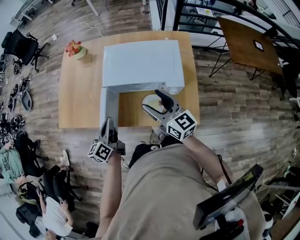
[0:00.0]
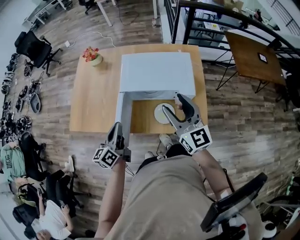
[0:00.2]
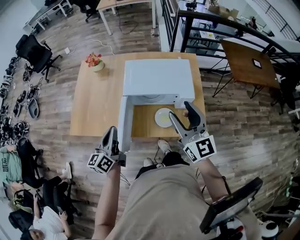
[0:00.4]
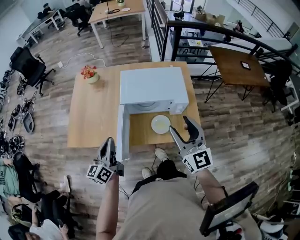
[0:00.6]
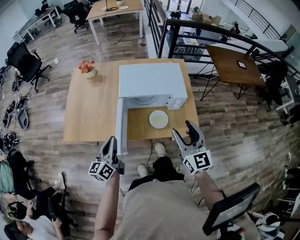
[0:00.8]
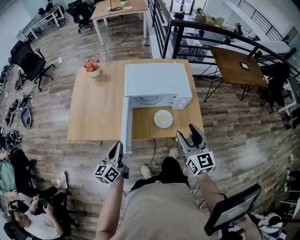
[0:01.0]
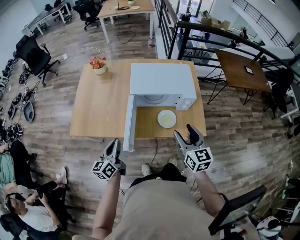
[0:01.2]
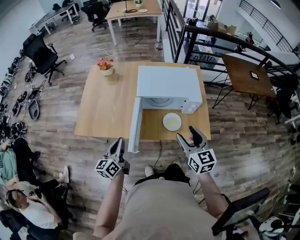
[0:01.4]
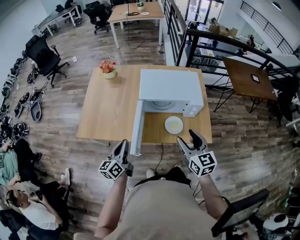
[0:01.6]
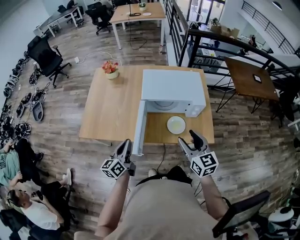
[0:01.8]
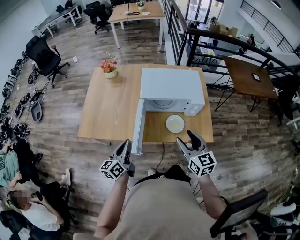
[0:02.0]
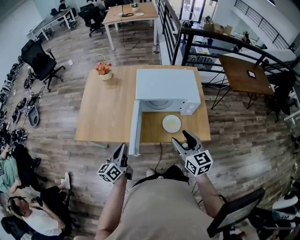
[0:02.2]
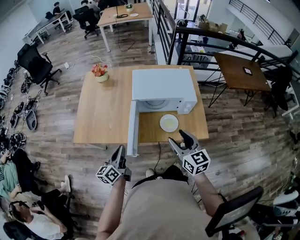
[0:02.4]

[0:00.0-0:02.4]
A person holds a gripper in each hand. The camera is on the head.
0:00.0 to 0:01.2: The right gripper is displaced backward by some 15 cm, and changes its angle by roughly 30 degrees, while the left gripper travels to the left and backward by some 15 cm.
0:01.2 to 0:02.4: The grippers make only small movements.

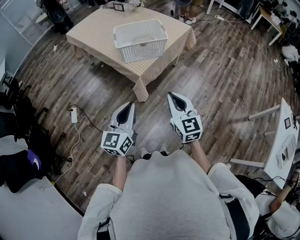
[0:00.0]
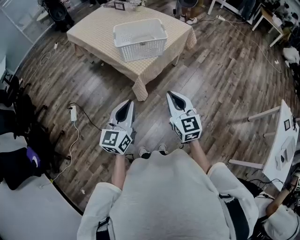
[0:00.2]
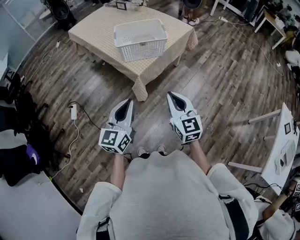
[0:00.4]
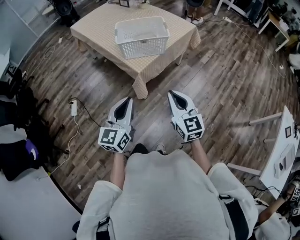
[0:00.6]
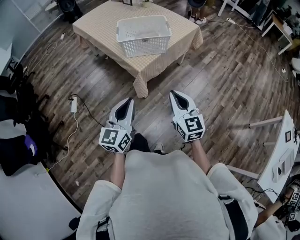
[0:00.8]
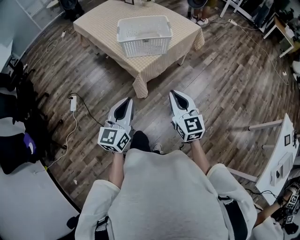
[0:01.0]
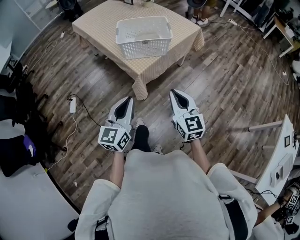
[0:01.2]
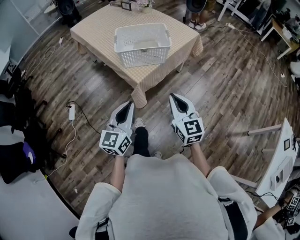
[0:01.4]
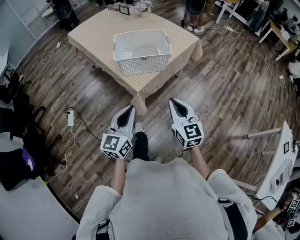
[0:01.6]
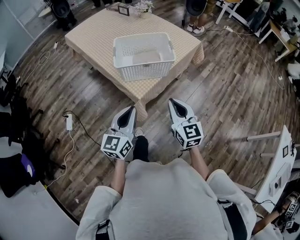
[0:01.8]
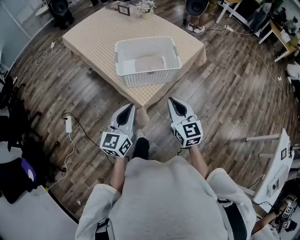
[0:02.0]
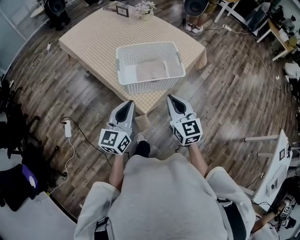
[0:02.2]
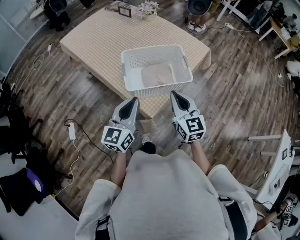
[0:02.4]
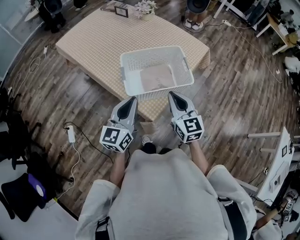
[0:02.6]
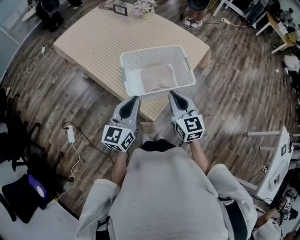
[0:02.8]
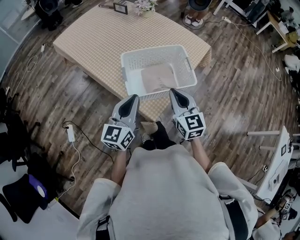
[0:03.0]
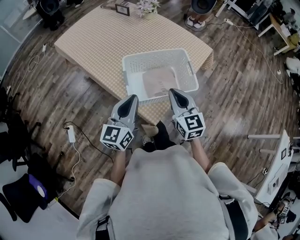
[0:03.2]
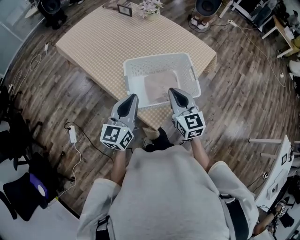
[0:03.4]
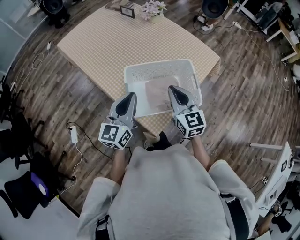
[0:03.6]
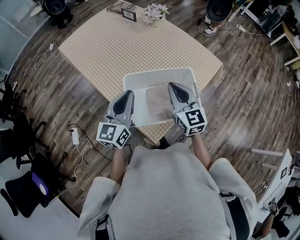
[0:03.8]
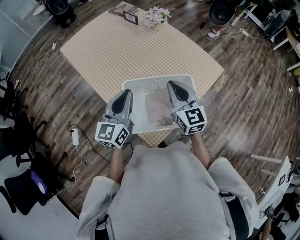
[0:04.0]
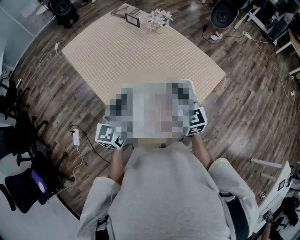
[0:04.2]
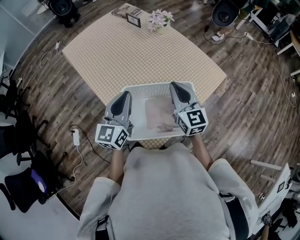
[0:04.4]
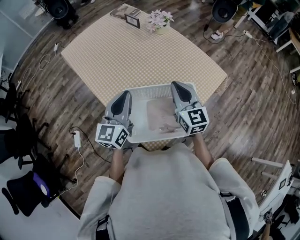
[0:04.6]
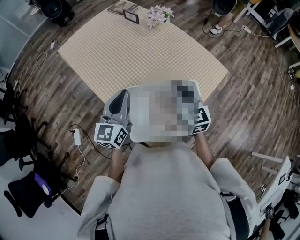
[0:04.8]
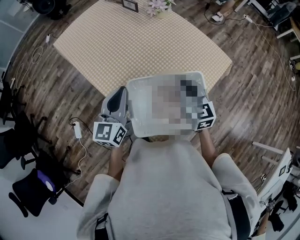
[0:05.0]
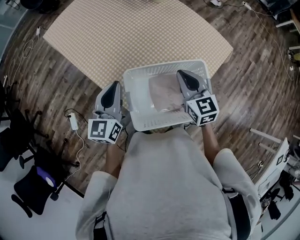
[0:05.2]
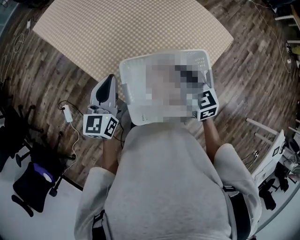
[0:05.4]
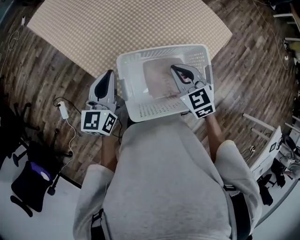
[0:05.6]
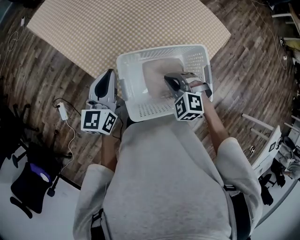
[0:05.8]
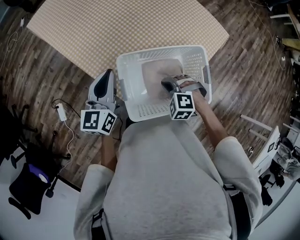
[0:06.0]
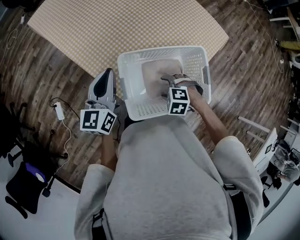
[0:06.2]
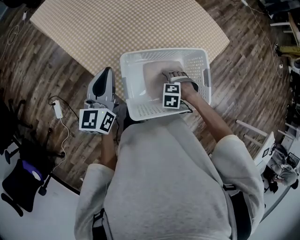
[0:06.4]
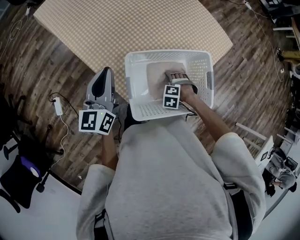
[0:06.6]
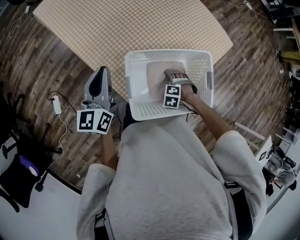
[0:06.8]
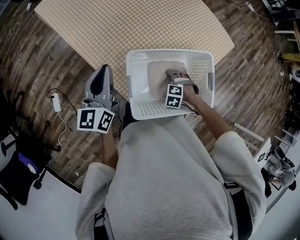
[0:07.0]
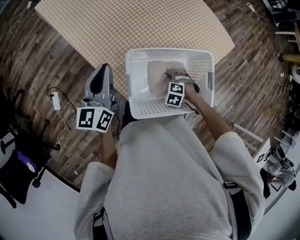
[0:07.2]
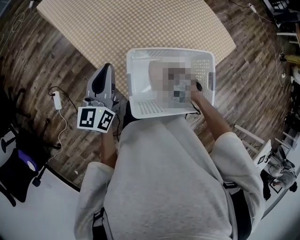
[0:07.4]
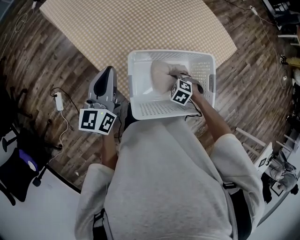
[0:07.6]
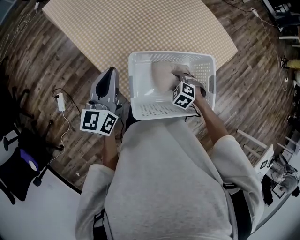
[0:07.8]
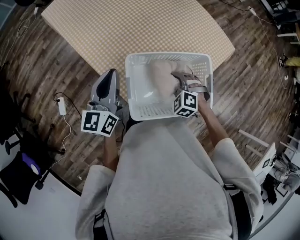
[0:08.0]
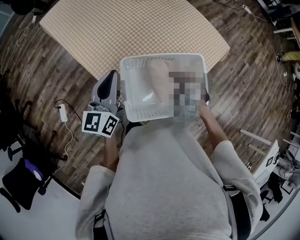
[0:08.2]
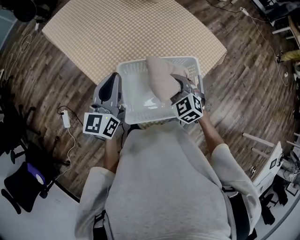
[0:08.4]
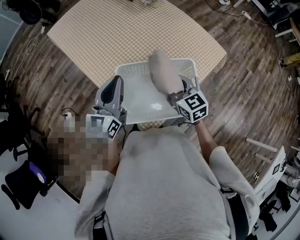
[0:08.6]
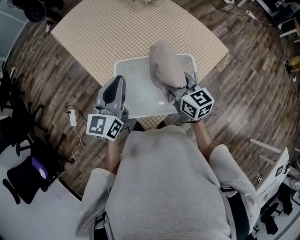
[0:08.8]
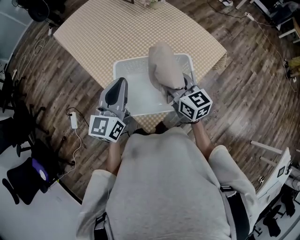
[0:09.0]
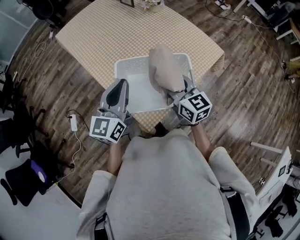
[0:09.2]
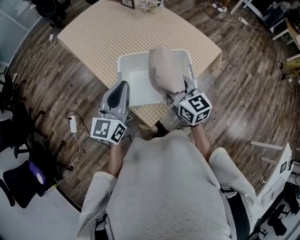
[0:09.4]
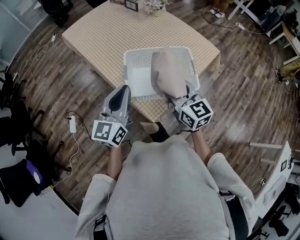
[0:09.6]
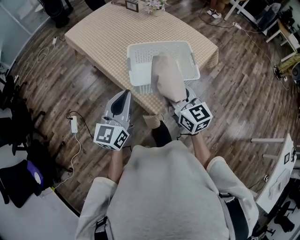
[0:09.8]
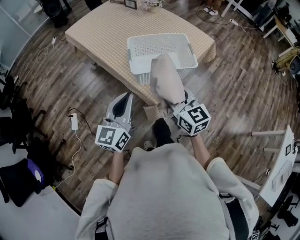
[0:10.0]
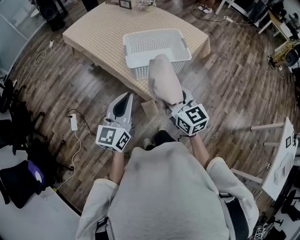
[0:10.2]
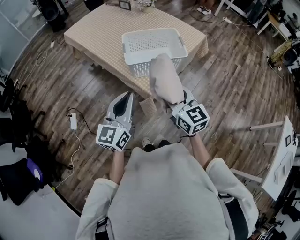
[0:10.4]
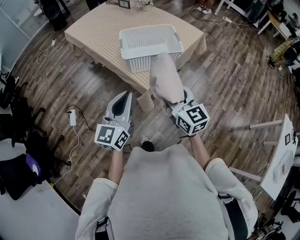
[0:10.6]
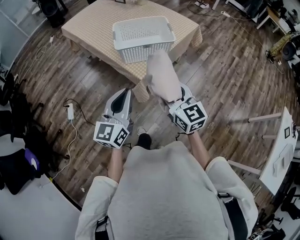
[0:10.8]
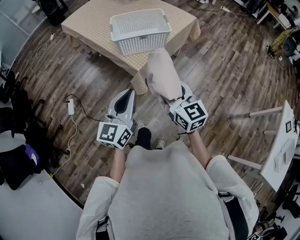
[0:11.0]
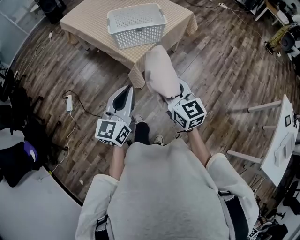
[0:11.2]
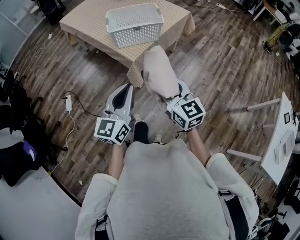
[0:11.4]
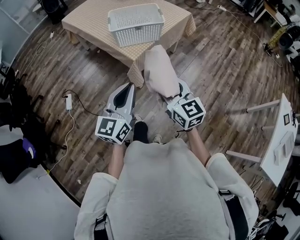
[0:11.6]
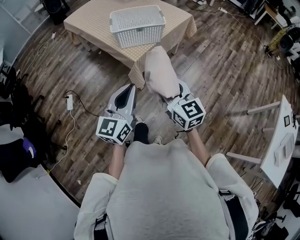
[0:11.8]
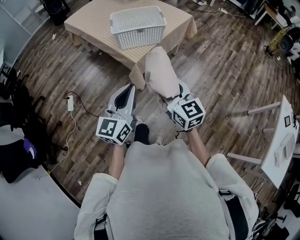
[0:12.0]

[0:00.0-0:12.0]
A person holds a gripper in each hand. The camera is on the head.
0:00.0 to 0:01.6: The grippers both shift forward by roughly 10 cm.
0:01.6 to 0:03.0: The right gripper is displaced forward and to the left by roughly 30 cm; the left gripper heads forward, covering about 30 cm.
0:03.0 to 0:04.4: The grippers both shift forward by approximately 20 cm.
0:04.4 to 0:06.0: The left gripper moves downward and to the left, roughly 10 cm. The right gripper moves downward, roughly 20 cm, and angles its fingers downward, by about 60 degrees.
0:06.0 to 0:07.6: The right gripper goes some 10 cm downward, and opens and closes again.
0:07.6 to 0:09.0: The left gripper shifts by approximately 15 cm; the right gripper moves upward, about 30 cm, and angles its fingers upward, by approximately 60 degrees.
0:09.0 to 0:10.4: The two grippers go approximately 35 cm backward.
0:10.4 to 0:12.0: The left gripper goes roughly 25 cm backward and to the right. The right gripper is displaced backward by some 20 cm.

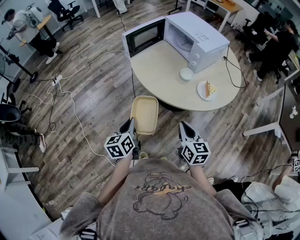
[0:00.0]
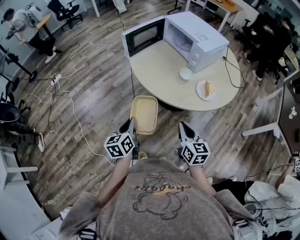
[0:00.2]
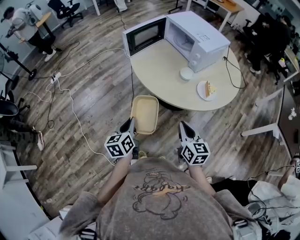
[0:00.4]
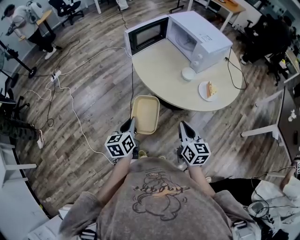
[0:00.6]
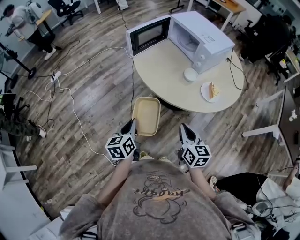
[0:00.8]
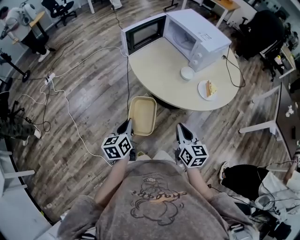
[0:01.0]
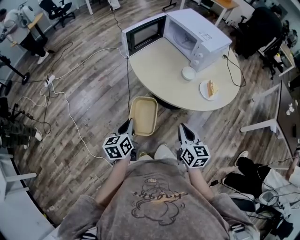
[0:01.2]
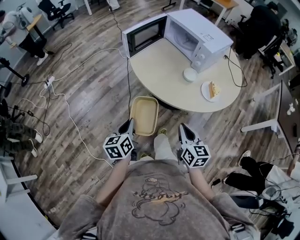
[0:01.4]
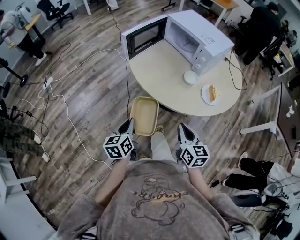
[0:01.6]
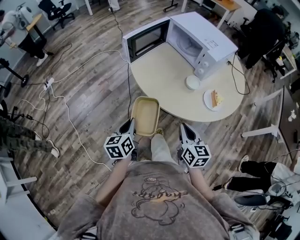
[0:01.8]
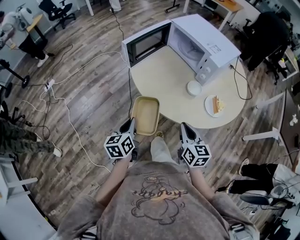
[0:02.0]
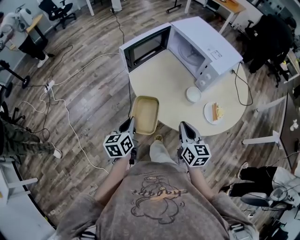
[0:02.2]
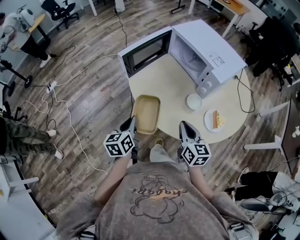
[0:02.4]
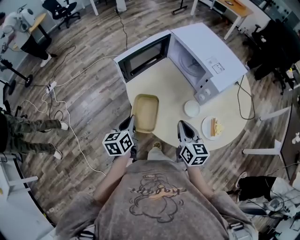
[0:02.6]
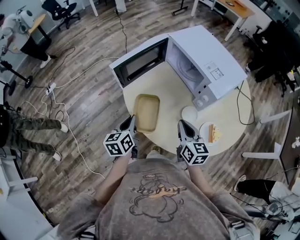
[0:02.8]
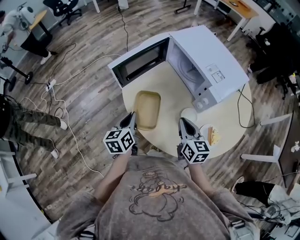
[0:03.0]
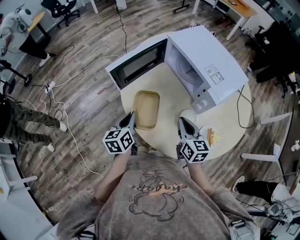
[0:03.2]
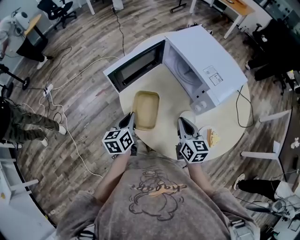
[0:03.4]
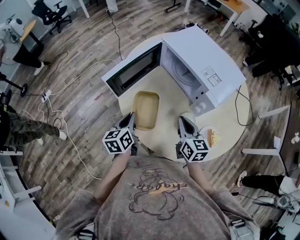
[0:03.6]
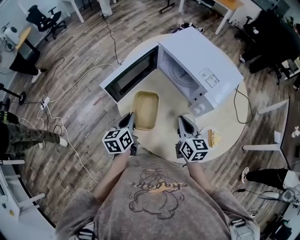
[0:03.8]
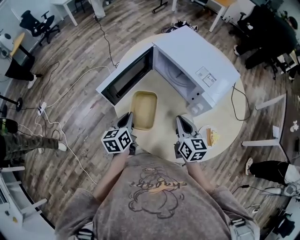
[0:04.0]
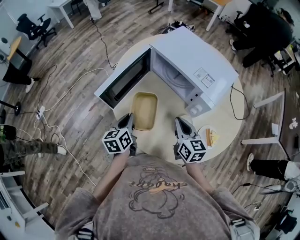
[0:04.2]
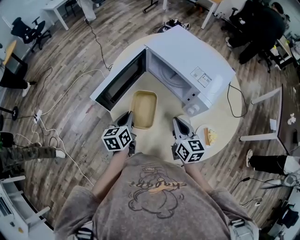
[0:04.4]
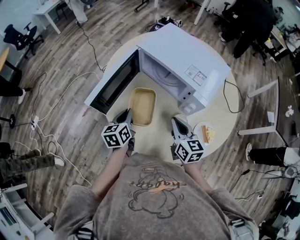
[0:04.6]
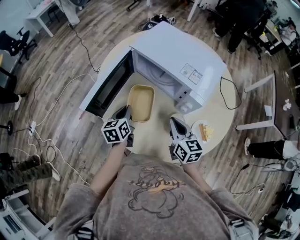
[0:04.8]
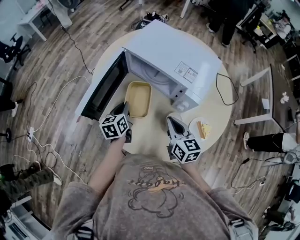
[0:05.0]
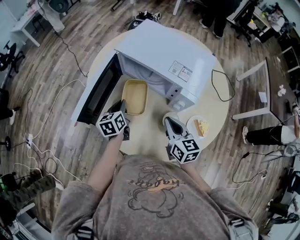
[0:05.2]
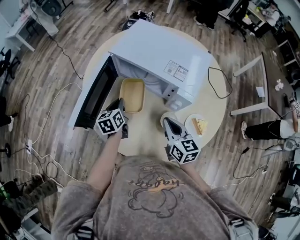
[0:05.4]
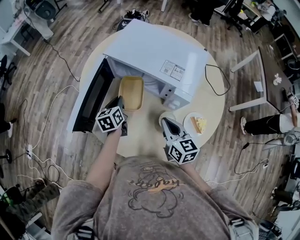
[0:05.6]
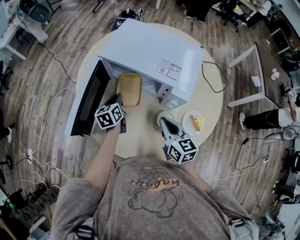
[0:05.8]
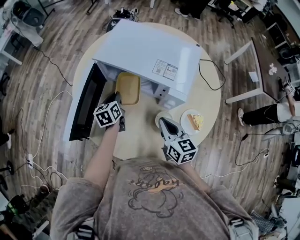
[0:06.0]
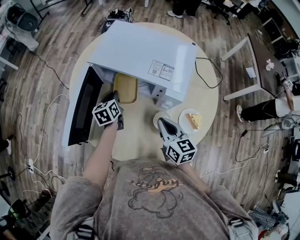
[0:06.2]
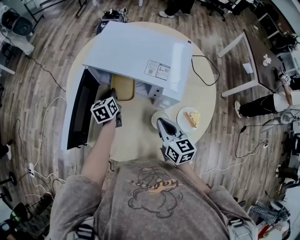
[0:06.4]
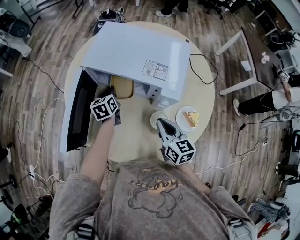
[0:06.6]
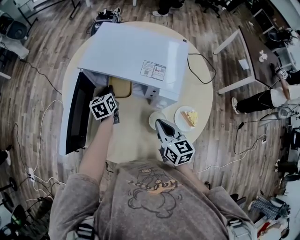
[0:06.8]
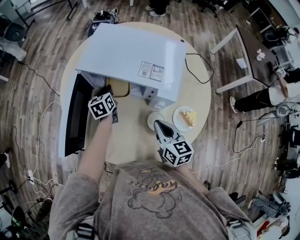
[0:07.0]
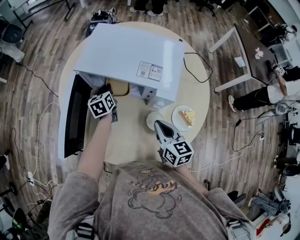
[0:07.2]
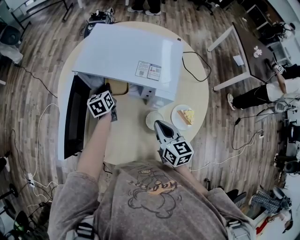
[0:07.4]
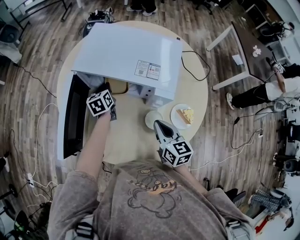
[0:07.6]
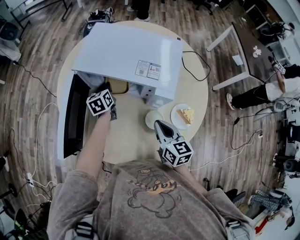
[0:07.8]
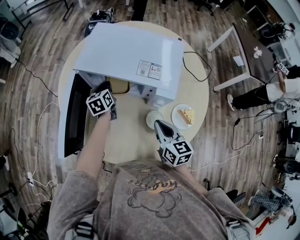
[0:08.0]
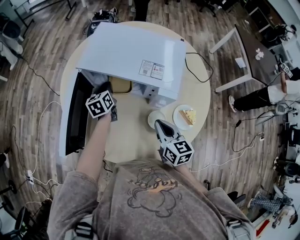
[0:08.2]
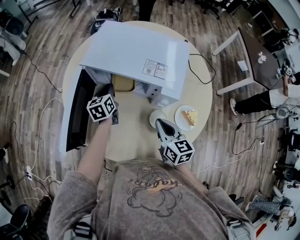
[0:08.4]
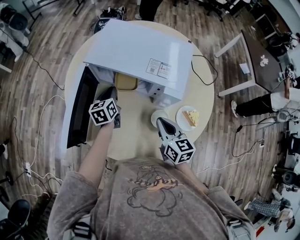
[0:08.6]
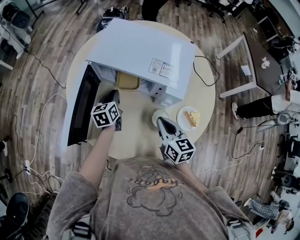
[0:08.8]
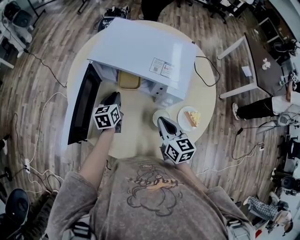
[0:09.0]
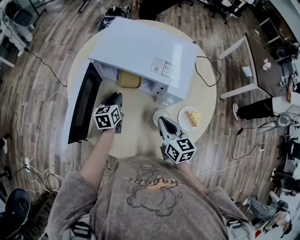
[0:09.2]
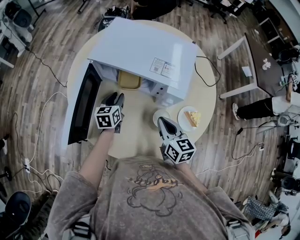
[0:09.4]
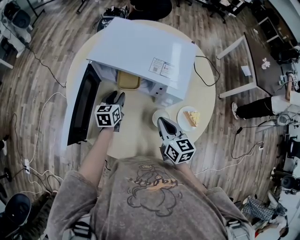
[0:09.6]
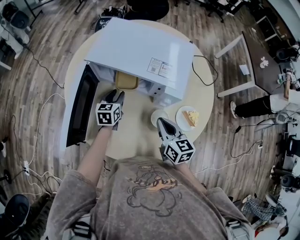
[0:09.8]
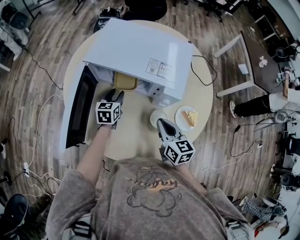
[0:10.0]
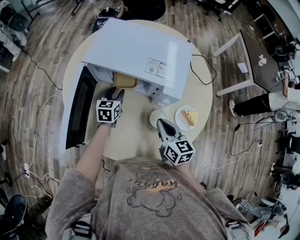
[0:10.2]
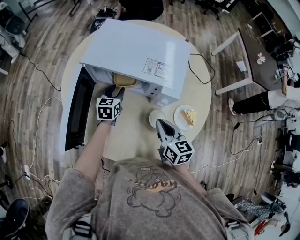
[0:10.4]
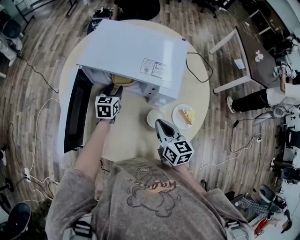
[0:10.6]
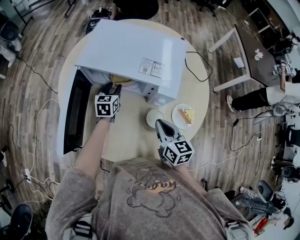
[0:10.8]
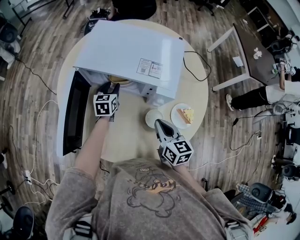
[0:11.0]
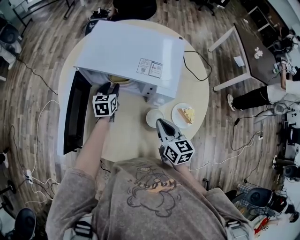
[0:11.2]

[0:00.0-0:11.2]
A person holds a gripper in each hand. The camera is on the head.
0:00.0 to 0:01.6: The right gripper ends up roughly 5 cm from where it was. The left gripper moves forward, some 5 cm.
0:01.6 to 0:03.2: The grippers both shift forward by about 30 cm.
0:03.2 to 0:04.8: The left gripper shifts about 15 cm forward.
0:04.8 to 0:06.4: The left gripper travels forward and to the right by approximately 20 cm.
0:06.4 to 0:08.0: The left gripper ends up some 5 cm from where it was.
0:08.0 to 0:09.6: The left gripper is displaced backward by roughly 10 cm, and opens.
0:09.6 to 0:11.2: The left gripper travels forward by roughly 5 cm.
